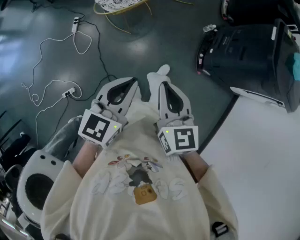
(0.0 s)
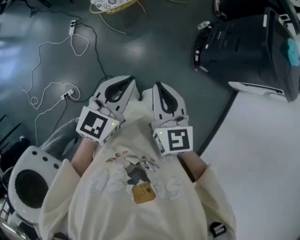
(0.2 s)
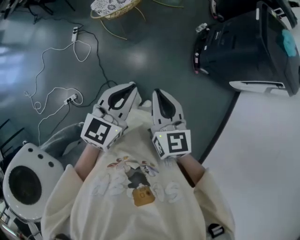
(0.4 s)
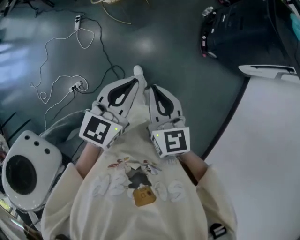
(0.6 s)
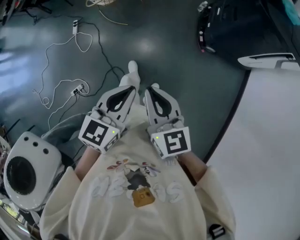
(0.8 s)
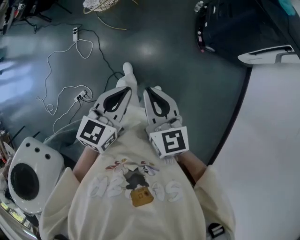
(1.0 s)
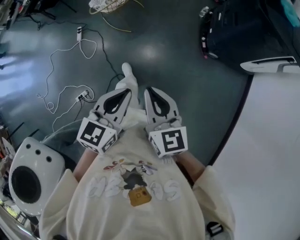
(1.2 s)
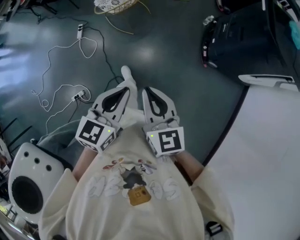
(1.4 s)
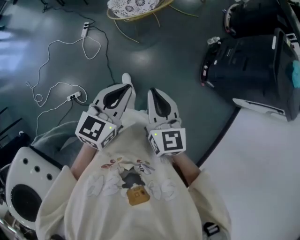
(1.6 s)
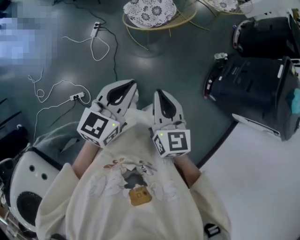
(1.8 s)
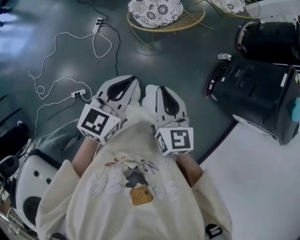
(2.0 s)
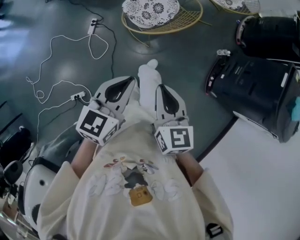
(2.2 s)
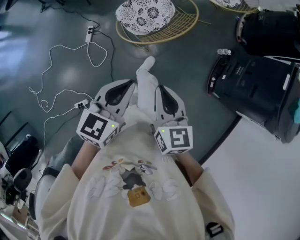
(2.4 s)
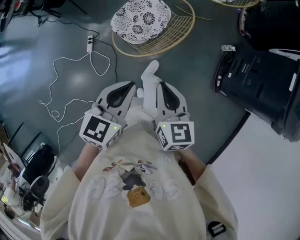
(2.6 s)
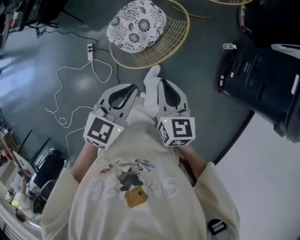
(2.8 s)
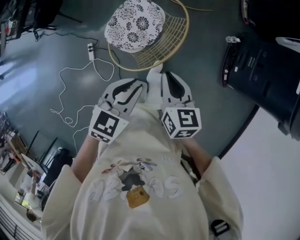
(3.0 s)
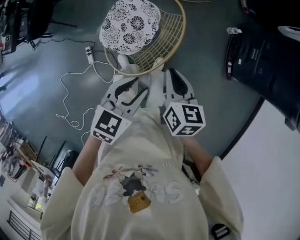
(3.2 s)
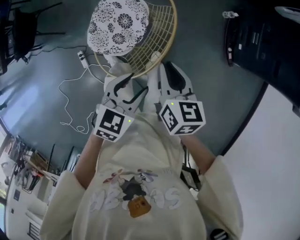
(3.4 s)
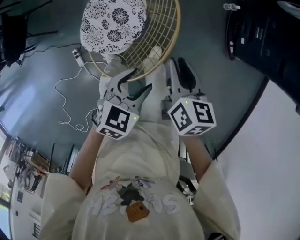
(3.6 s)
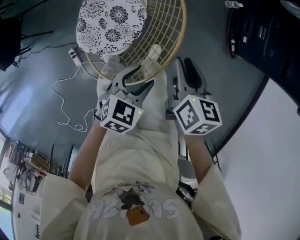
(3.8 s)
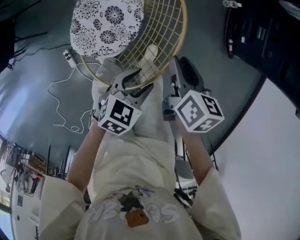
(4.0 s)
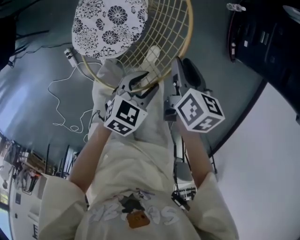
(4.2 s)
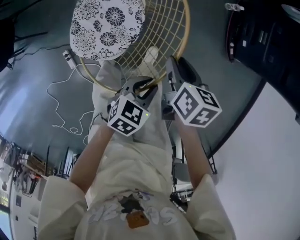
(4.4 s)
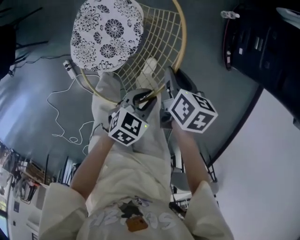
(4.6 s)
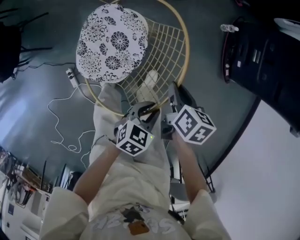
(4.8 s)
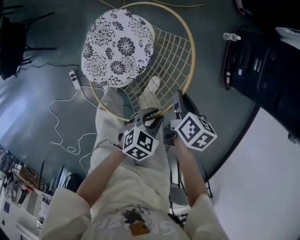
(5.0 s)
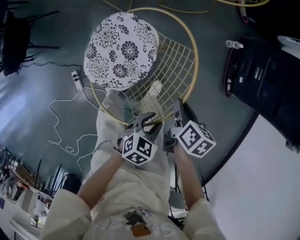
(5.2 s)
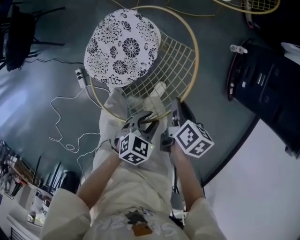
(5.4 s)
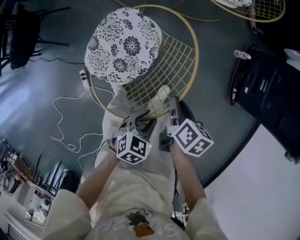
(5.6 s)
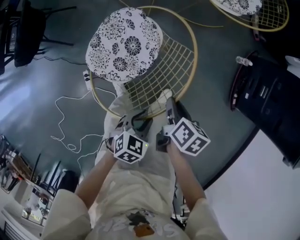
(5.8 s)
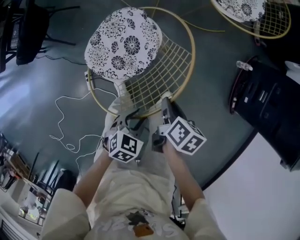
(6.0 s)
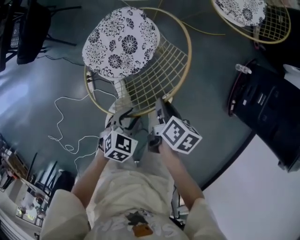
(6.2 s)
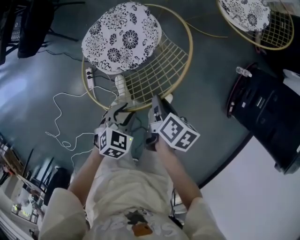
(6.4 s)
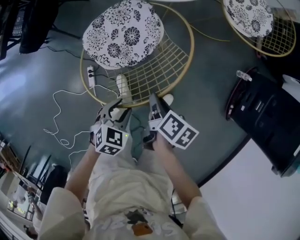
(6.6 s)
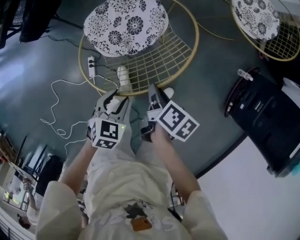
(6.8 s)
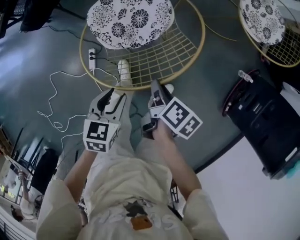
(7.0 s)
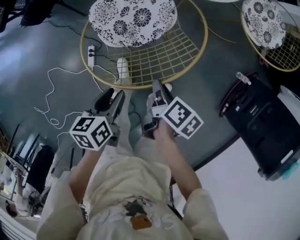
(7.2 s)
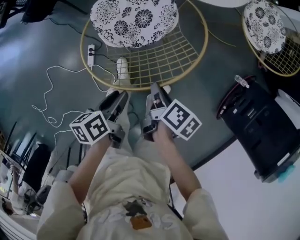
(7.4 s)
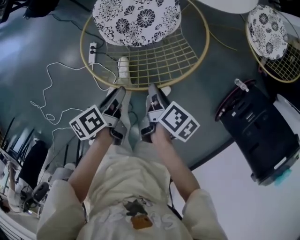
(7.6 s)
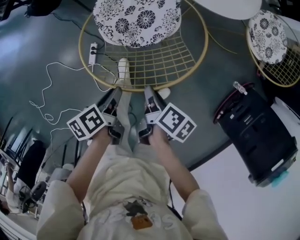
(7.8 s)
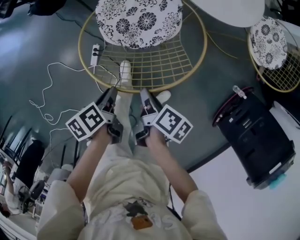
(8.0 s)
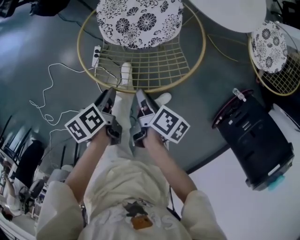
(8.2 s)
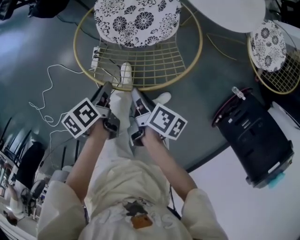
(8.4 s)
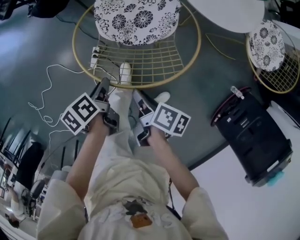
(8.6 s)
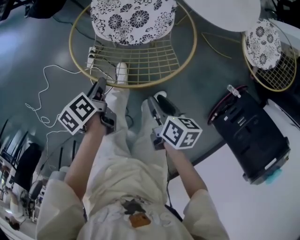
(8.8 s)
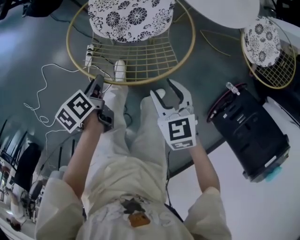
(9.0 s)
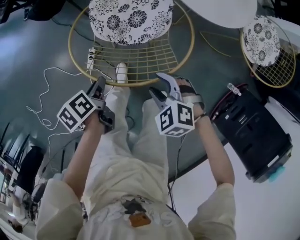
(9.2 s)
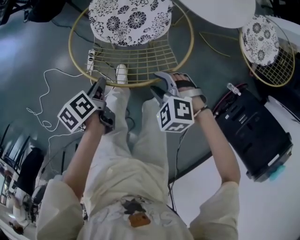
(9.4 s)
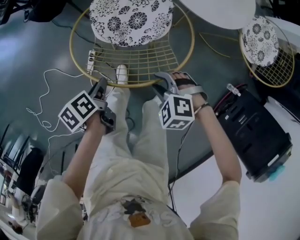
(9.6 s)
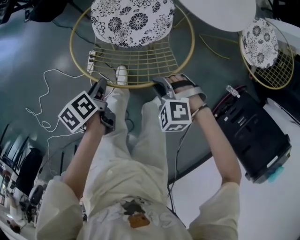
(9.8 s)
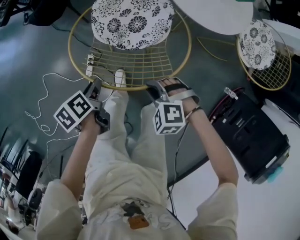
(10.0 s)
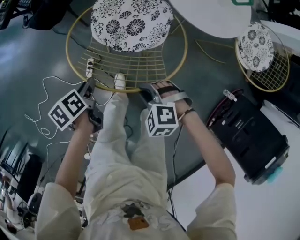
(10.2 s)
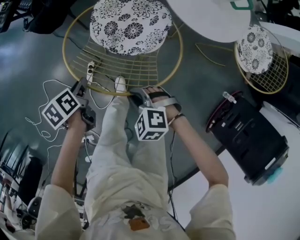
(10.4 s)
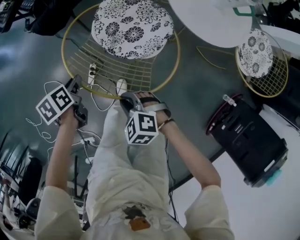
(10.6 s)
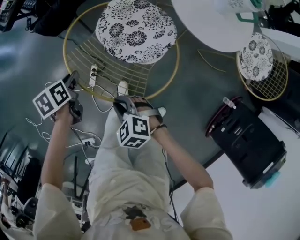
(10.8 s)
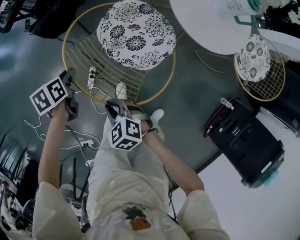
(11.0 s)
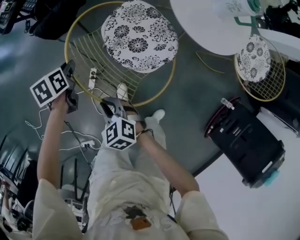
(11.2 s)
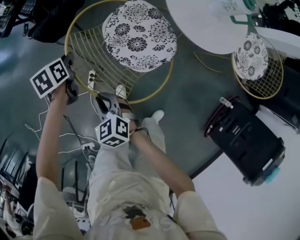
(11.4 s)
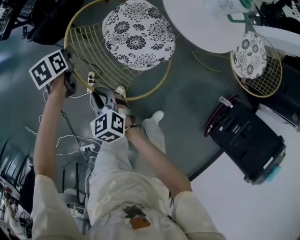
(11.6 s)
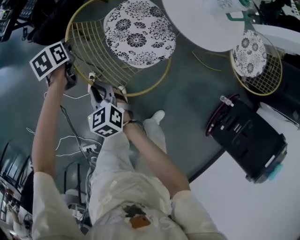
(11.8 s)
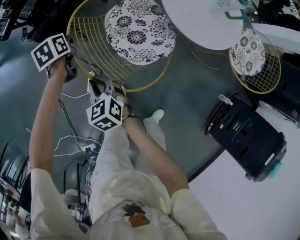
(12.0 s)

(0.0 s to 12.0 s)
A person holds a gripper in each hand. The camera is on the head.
0.0 s - 1.6 s: The grippers both shift to the left by some 5 cm. The left gripper moves about 20 cm backward and comes back. The right gripper goes backward and returns, approximately 20 cm each way.
1.6 s - 3.0 s: Both grippers are carried forward, approximately 40 cm. The left gripper changes its angle by about 30 degrees. Meanwhile the right gripper turns by approximately 20 degrees.
3.0 s - 4.4 s: The right gripper moves downward and forward, some 25 cm, swivels roughly 40 degrees, and opens; the left gripper moves downward, roughly 25 cm, changes its angle by approximately 30 degrees, and opens, then closes again.
4.4 s - 6.0 s: The left gripper changes its angle by about 30 degrees.
6.0 s - 7.6 s: The right gripper rotates roughly 30 degrees, while the left gripper rolls counterclockwise, seen from behind, by roughly 110 degrees.
7.6 s - 9.0 s: The right gripper is displaced to the right by about 5 cm, twists roughly 90 degrees counterclockwise, seen from behind, and opens up.
9.0 s - 10.4 s: The left gripper moves forward, some 5 cm. The right gripper is displaced to the left and downward by approximately 10 cm, rotates around the line of its fingers by approximately 50 degrees, counterclockwise from behind, and closes up.
10.4 s - 12.0 s: The left gripper moves forward, approximately 25 cm, and swivels some 20 degrees. The right gripper is displaced forward and to the left by some 20 cm, and swivels some 40 degrees.

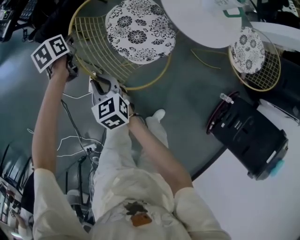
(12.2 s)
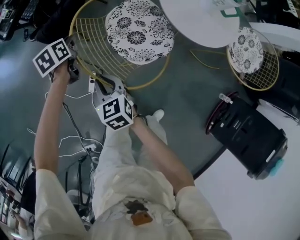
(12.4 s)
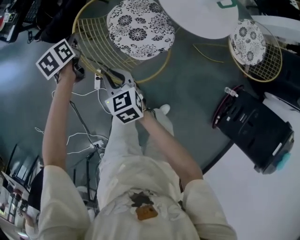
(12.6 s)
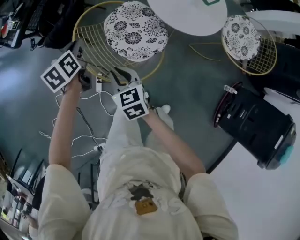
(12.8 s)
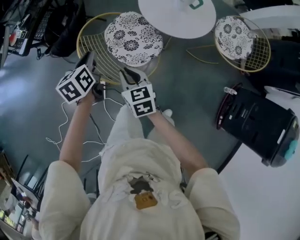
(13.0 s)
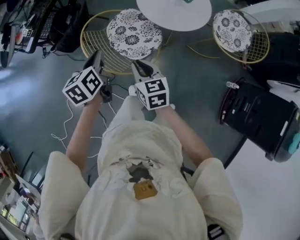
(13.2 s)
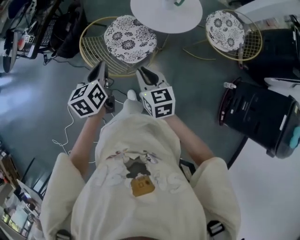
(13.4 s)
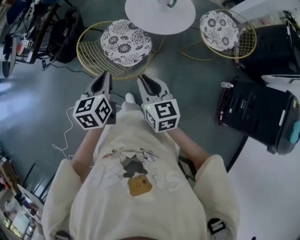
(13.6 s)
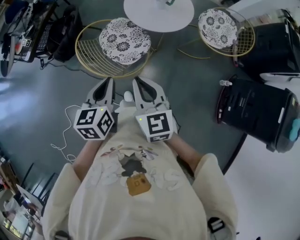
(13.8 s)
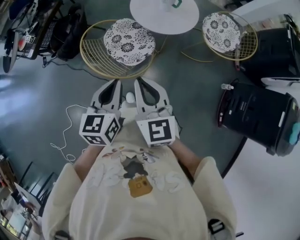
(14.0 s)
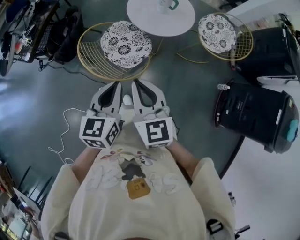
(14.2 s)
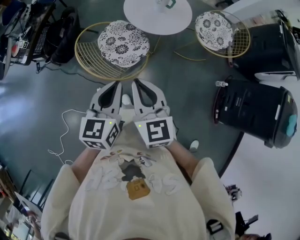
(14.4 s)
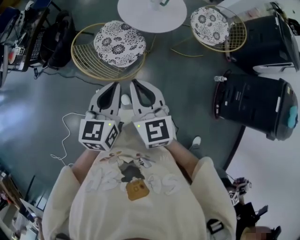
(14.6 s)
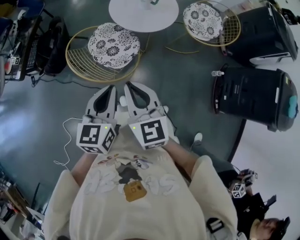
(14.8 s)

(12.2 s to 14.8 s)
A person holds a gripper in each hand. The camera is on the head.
12.2 s - 13.4 s: The right gripper moves to the right, upward and backward, some 35 cm, and changes its angle by approximately 30 degrees. The left gripper goes approximately 40 cm upward, backward and to the right, and turns by about 30 degrees.
13.4 s - 14.8 s: The right gripper moves upward and backward, approximately 15 cm; the left gripper is displaced backward, upward and to the right by approximately 15 cm, and turns by some 30 degrees.

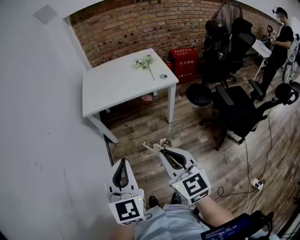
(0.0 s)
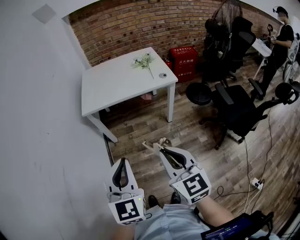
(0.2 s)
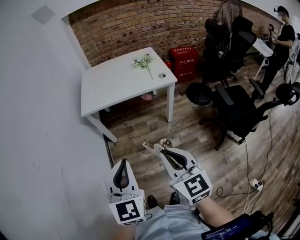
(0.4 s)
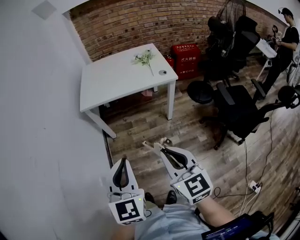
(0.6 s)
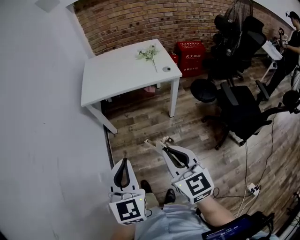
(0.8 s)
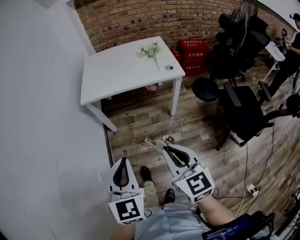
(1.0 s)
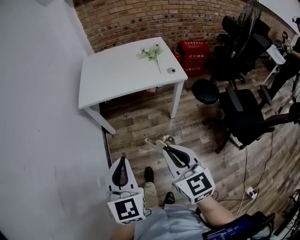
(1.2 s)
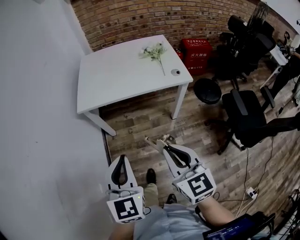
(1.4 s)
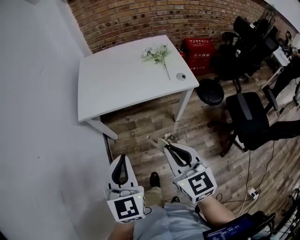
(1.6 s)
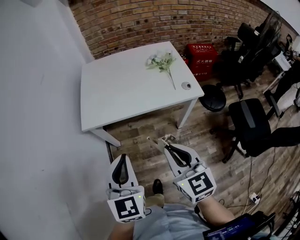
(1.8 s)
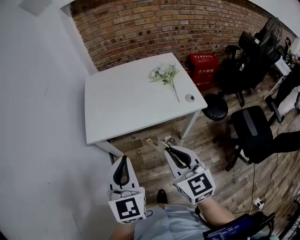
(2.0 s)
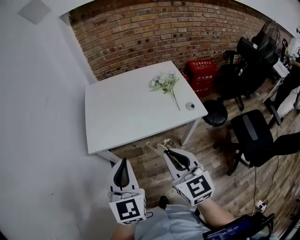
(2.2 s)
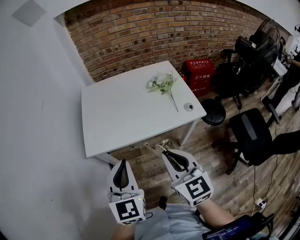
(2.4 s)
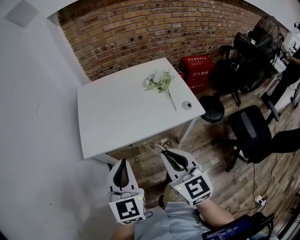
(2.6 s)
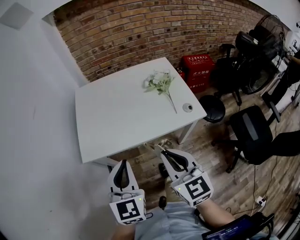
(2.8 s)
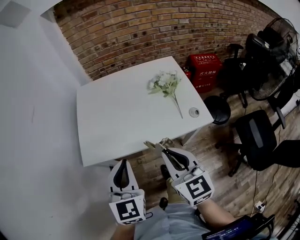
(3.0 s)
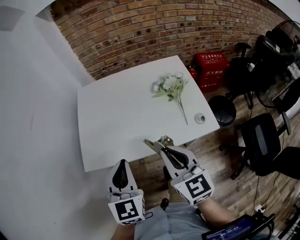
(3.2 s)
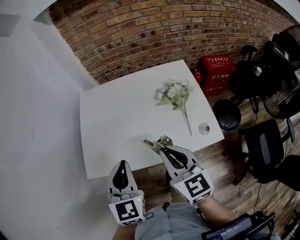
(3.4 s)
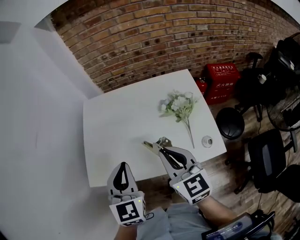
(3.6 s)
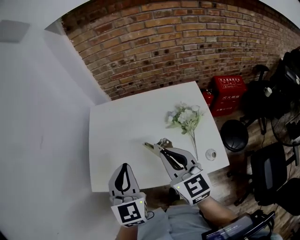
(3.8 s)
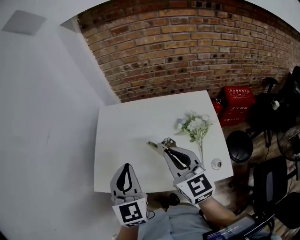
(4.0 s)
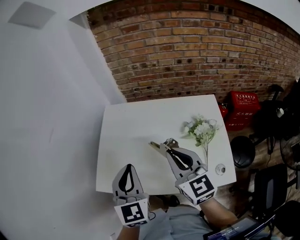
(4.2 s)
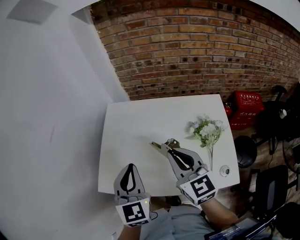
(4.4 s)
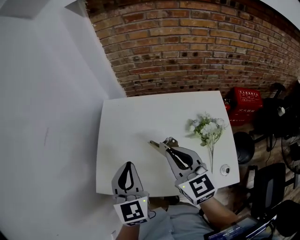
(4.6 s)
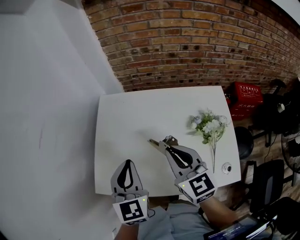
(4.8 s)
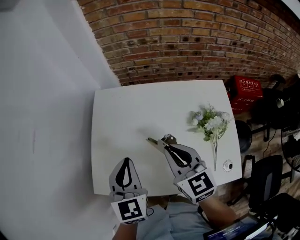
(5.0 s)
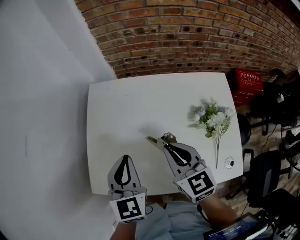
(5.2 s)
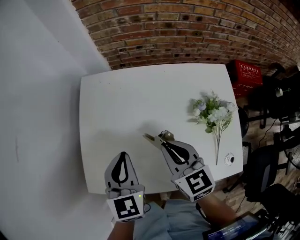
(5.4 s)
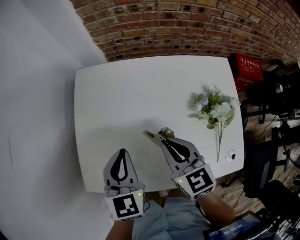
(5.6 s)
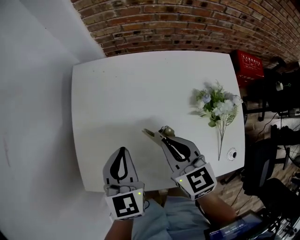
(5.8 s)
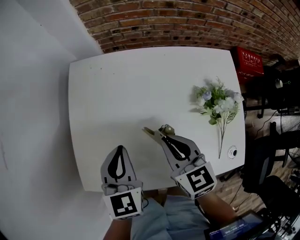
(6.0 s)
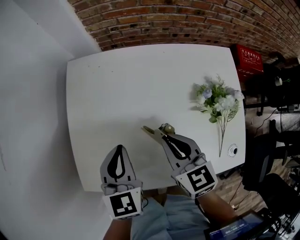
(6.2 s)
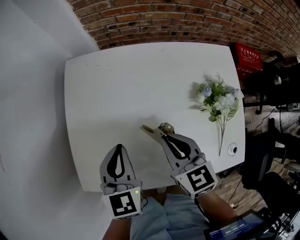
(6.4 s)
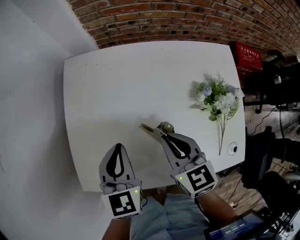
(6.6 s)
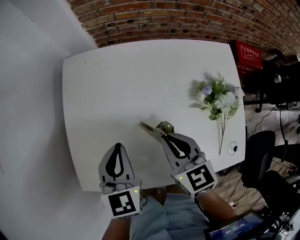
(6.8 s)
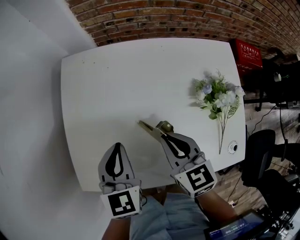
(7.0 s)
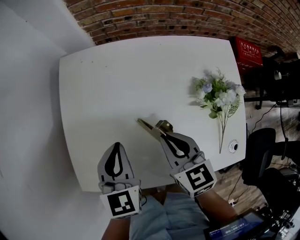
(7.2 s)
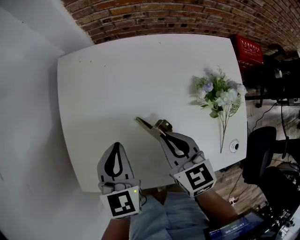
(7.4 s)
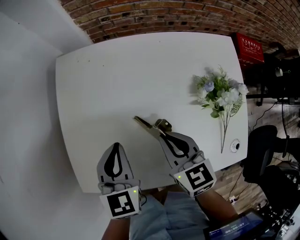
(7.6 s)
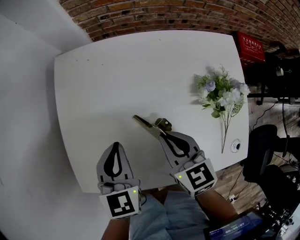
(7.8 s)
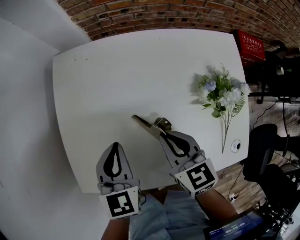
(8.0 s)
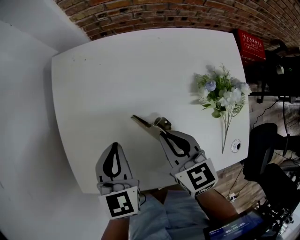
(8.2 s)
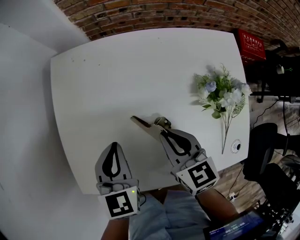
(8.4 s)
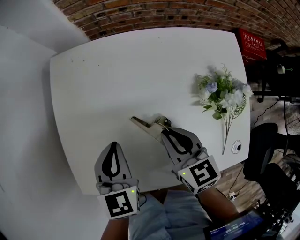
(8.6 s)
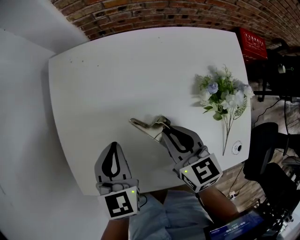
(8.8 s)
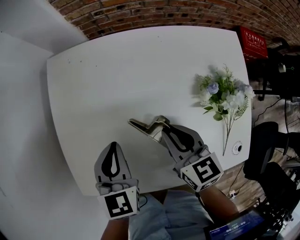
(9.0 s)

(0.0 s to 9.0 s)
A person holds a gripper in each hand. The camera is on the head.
0.0 s - 1.6 s: Both grippers move forward, some 20 cm.
1.6 s - 3.0 s: Both grippers travel together forward, approximately 25 cm.
3.0 s - 4.4 s: The two grippers go some 25 cm forward.
4.4 s - 6.0 s: The two grippers go approximately 20 cm downward and forward. The left gripper turns by roughly 20 degrees. The right gripper rotates some 20 degrees.
6.0 s - 7.6 s: The grippers make only small movements.
7.6 s - 9.0 s: The grippers make only small movements.
